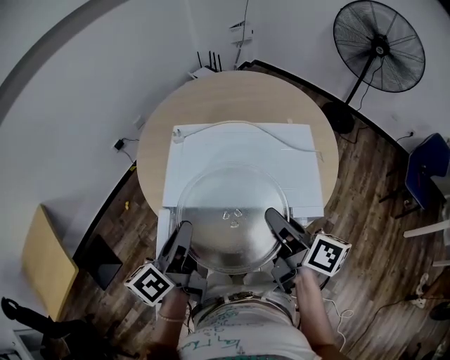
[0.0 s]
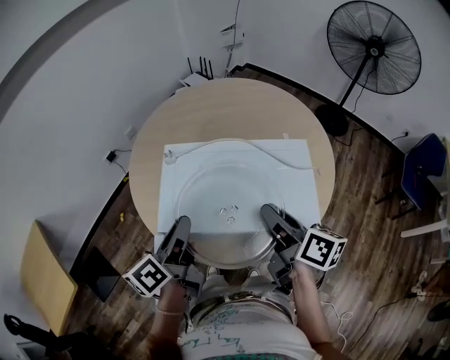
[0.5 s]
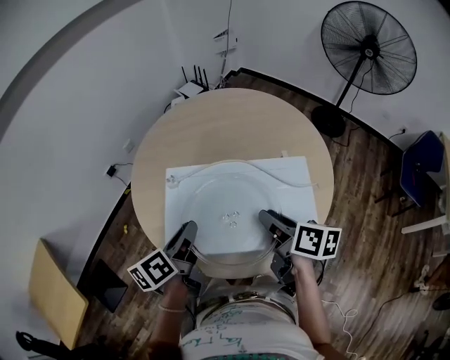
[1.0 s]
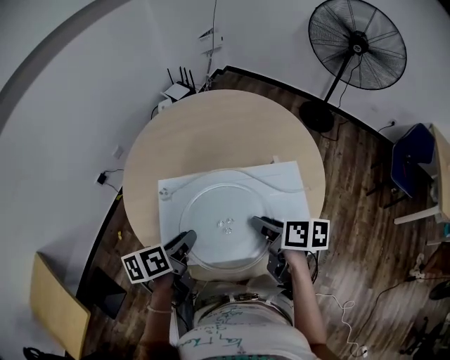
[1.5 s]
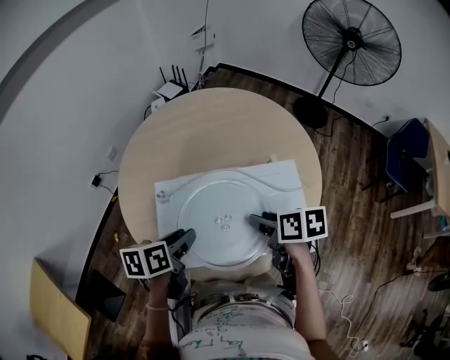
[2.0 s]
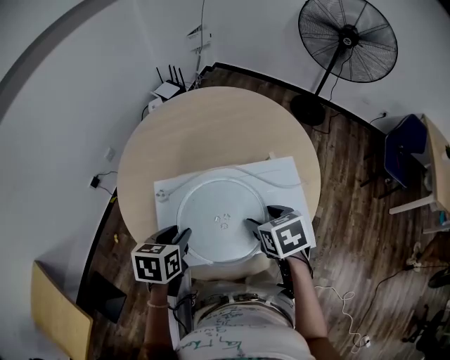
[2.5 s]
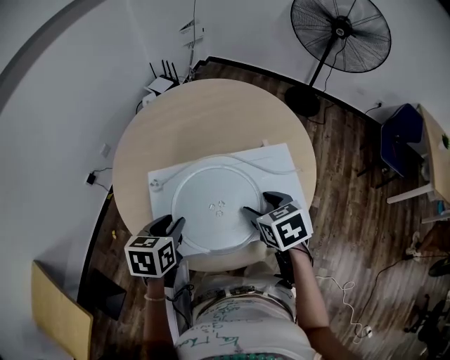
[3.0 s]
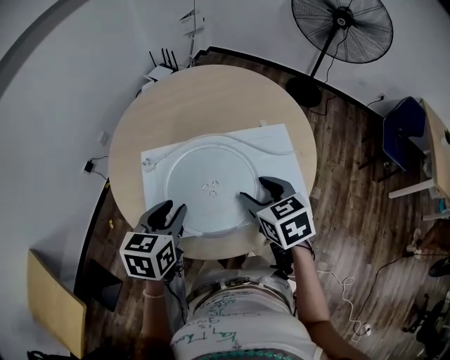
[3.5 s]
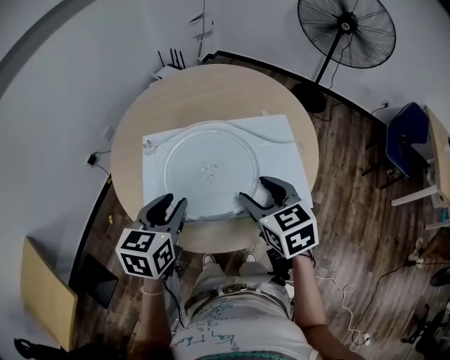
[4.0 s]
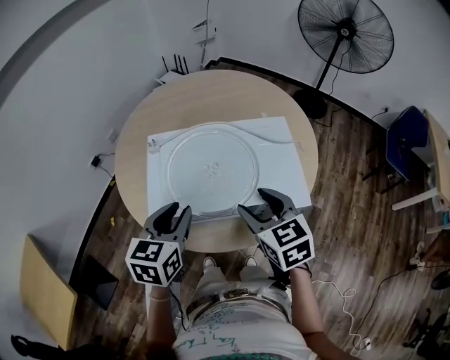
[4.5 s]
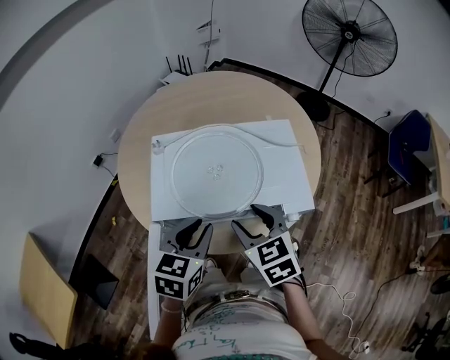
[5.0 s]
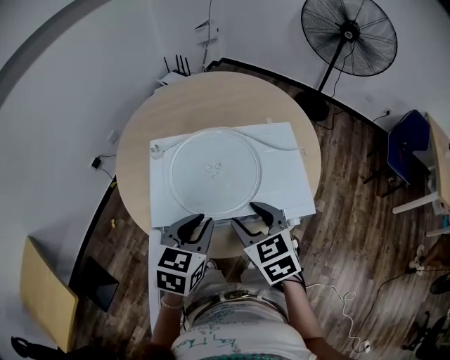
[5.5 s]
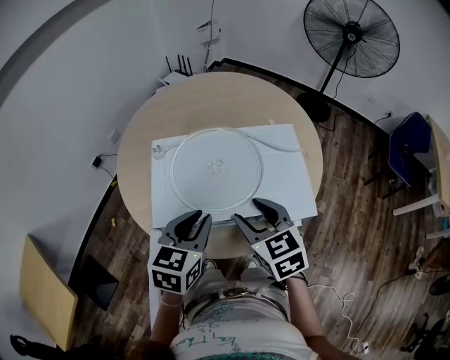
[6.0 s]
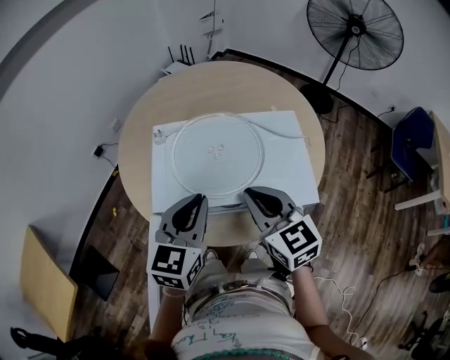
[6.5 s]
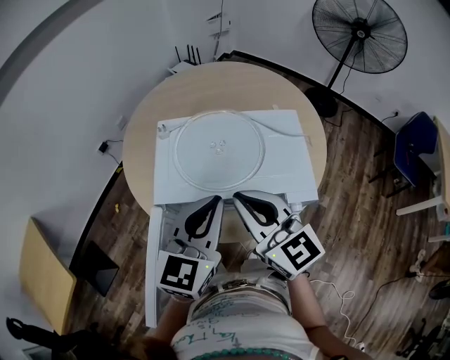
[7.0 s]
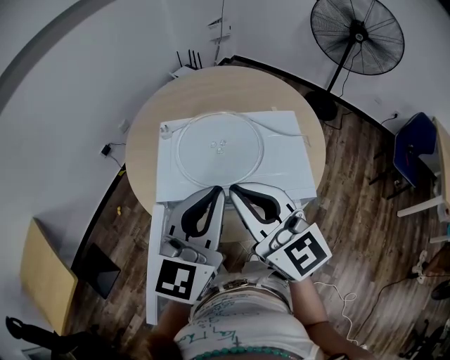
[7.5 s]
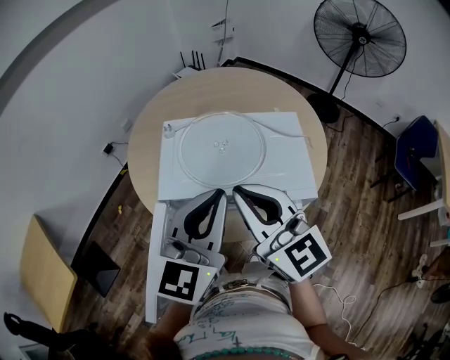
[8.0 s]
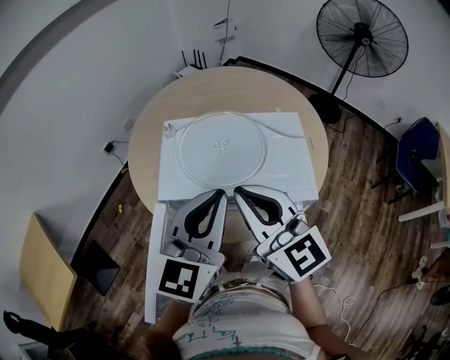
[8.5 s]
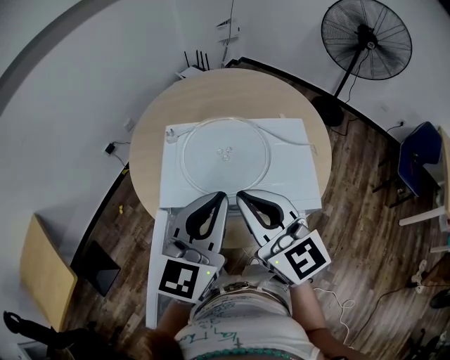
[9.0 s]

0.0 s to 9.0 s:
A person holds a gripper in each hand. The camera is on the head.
0.0 to 2.0 s: Both grippers move forward, approximately 15 cm. The left gripper tips its fingers downward by approximately 30 degrees. The right gripper tilts its fingers about 40 degrees downward, and opens its fingers.
2.0 to 4.5 s: The grippers both shift backward by about 10 cm. The right gripper rolls counterclockwise, seen from behind, by approximately 40 degrees. Meanwhile the left gripper rotates some 40 degrees.
4.5 to 7.0 s: The left gripper moves upward and to the right, approximately 10 cm, swivels some 20 degrees, and closes up. Meanwhile the right gripper moves upward and to the left, some 10 cm, rotates some 30 degrees, and closes its fingers.

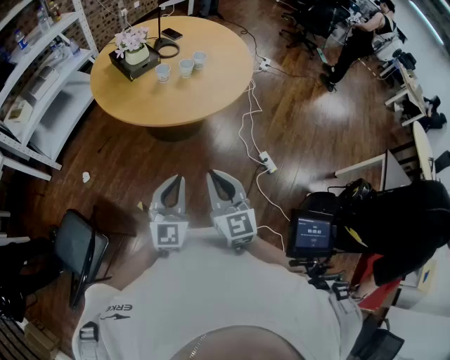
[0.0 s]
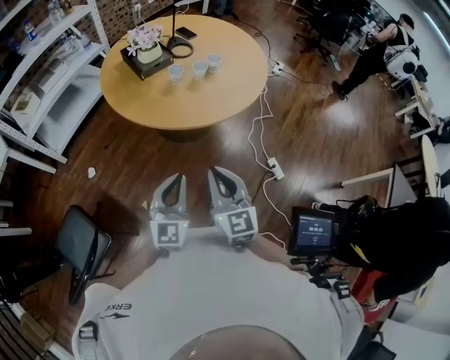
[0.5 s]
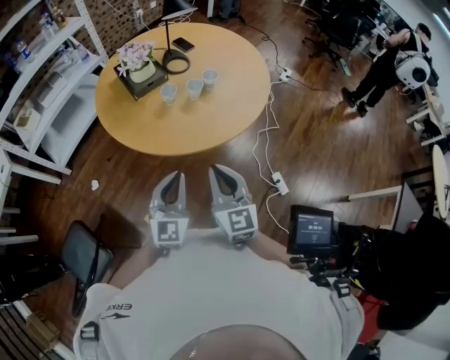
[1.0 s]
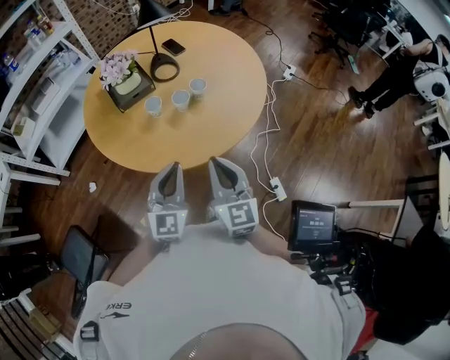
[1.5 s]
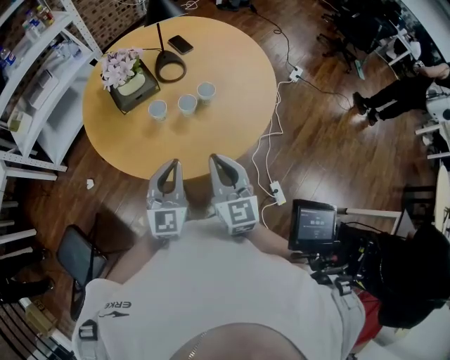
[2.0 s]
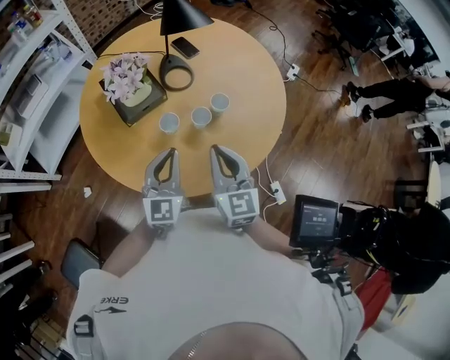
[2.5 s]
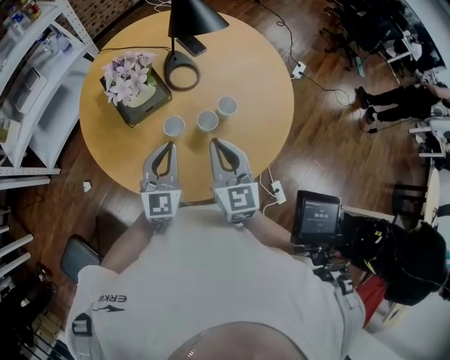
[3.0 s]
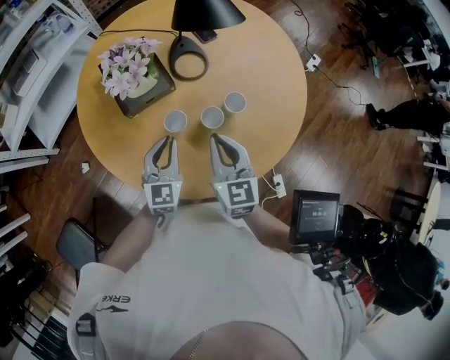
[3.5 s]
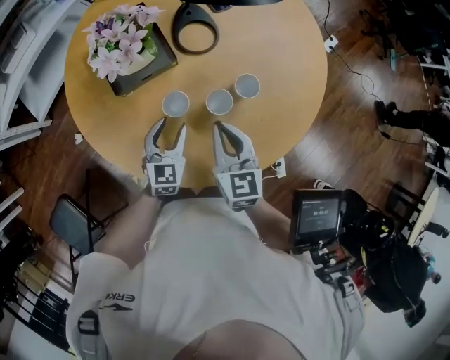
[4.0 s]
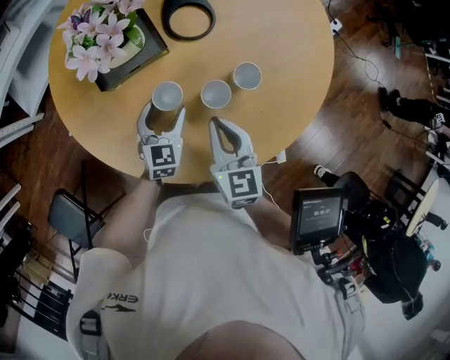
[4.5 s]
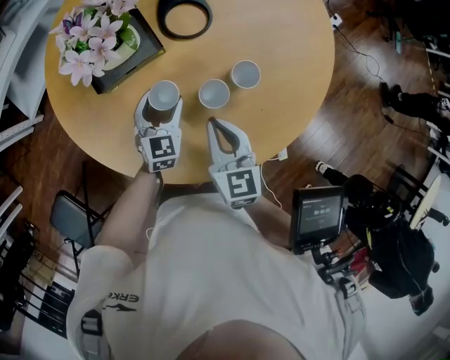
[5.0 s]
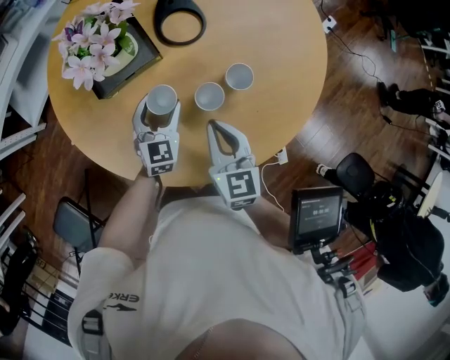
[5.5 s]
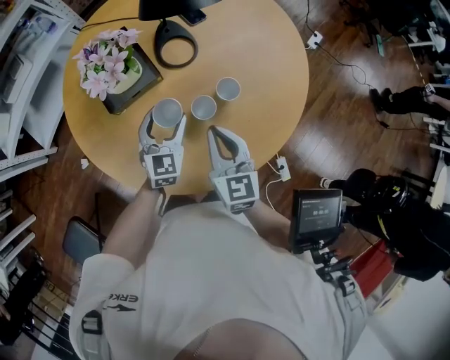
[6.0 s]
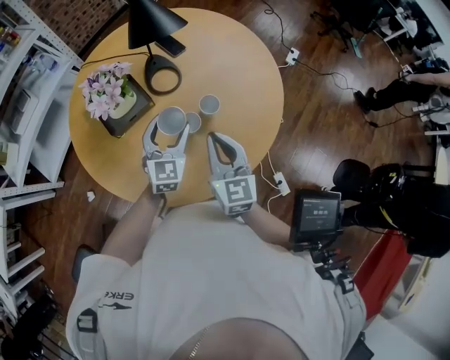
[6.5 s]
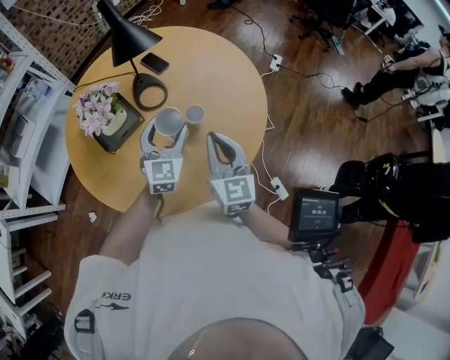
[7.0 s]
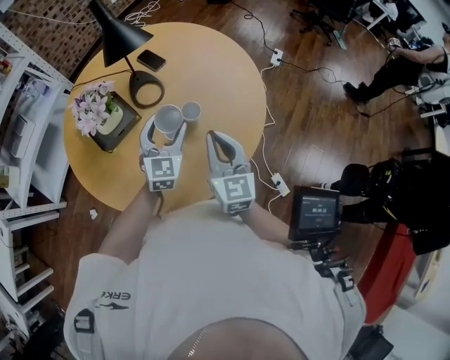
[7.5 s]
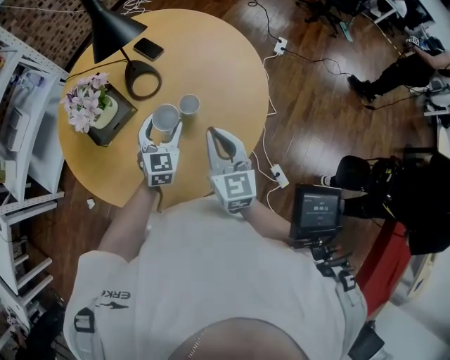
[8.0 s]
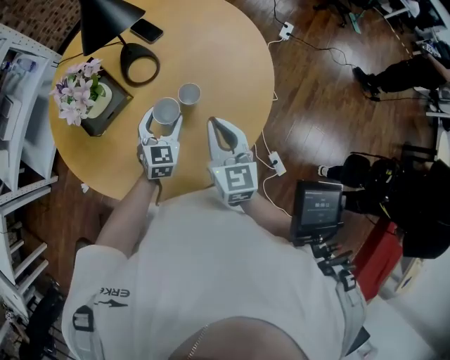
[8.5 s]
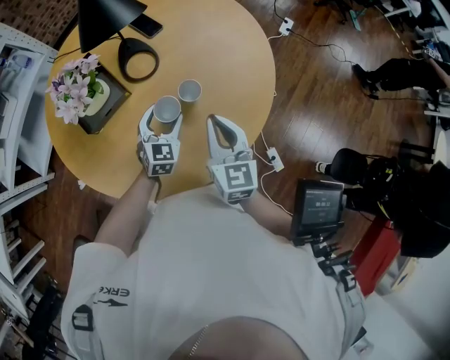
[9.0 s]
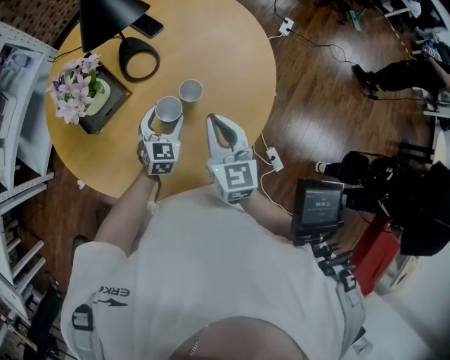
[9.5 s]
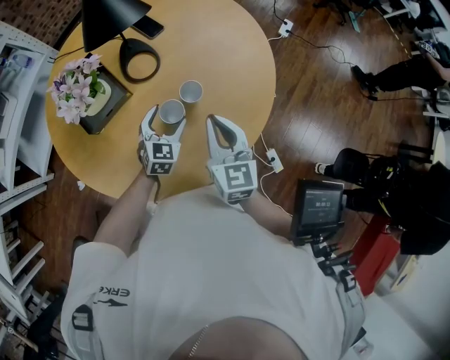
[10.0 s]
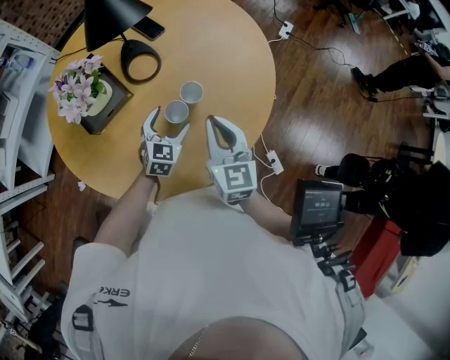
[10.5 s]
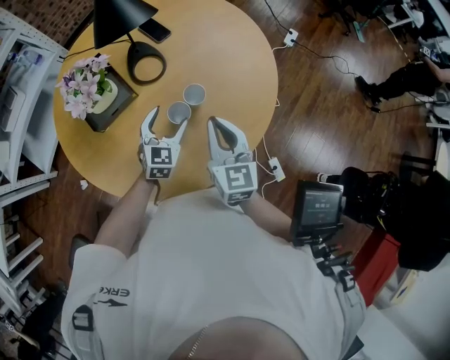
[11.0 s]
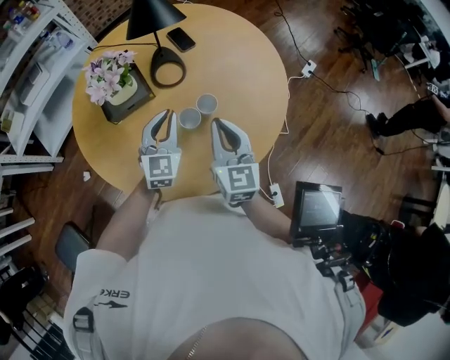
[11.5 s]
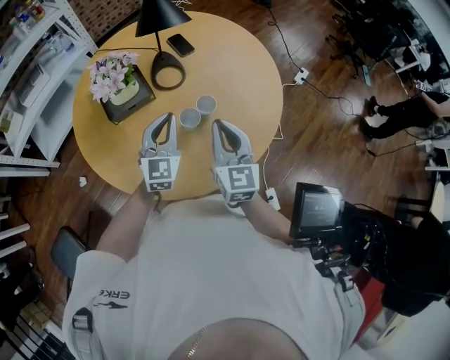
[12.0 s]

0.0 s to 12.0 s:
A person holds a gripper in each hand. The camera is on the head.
0.0 to 2.0 s: The two grippers go roughly 35 cm forward.
2.0 to 4.0 s: Both grippers travel together forward and downward, roughly 25 cm. The left gripper rotates some 20 degrees, and opens up.
4.0 to 6.0 s: The left gripper moves upward, some 5 cm.
6.0 to 8.0 s: The left gripper shifts about 10 cm to the right. Meanwhile the right gripper shifts about 10 cm to the right and upward.
8.0 to 10.0 s: The left gripper travels downward by roughly 10 cm.
10.0 to 12.0 s: The left gripper is displaced upward by some 15 cm, changes its angle by about 30 degrees, and closes its fingers. The right gripper heads upward, covering some 5 cm.

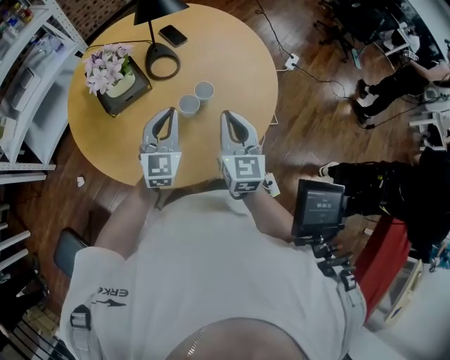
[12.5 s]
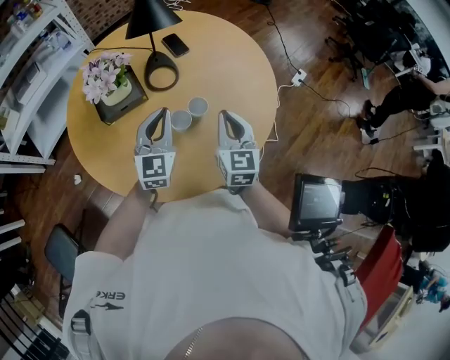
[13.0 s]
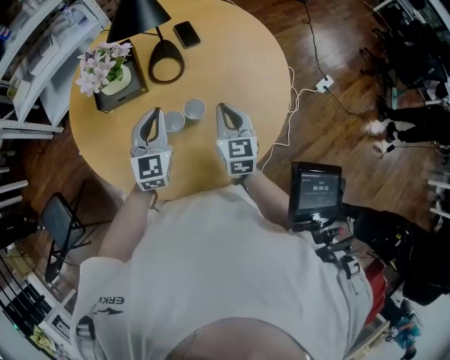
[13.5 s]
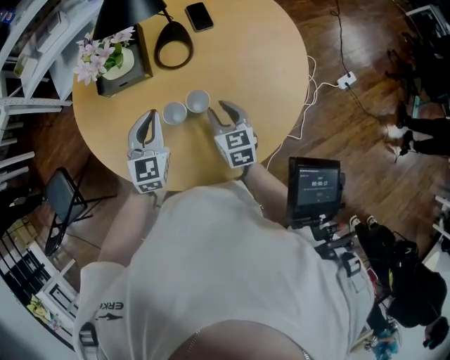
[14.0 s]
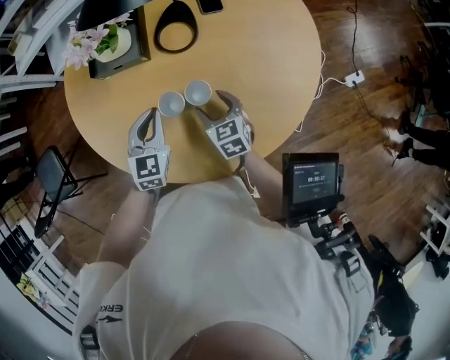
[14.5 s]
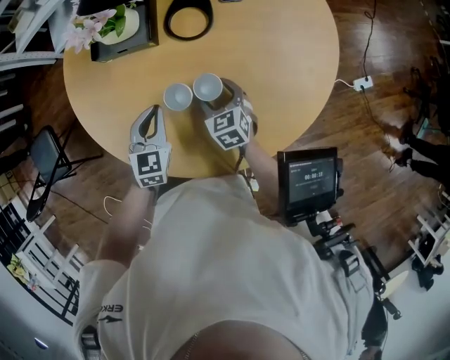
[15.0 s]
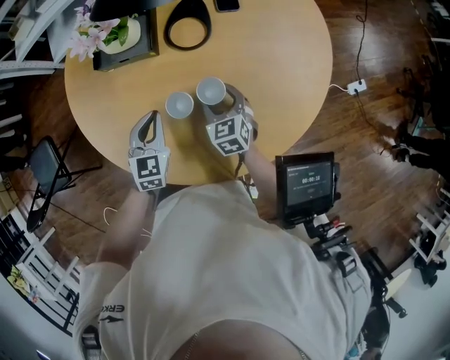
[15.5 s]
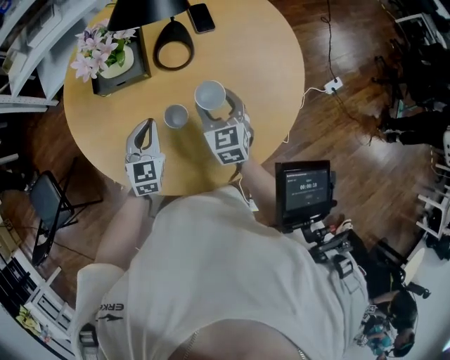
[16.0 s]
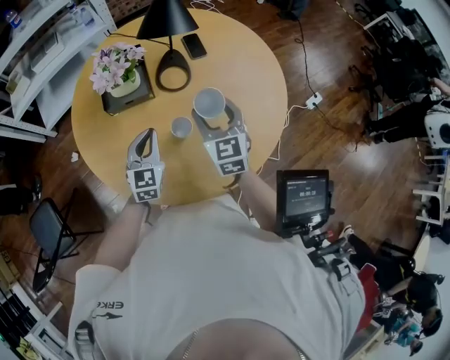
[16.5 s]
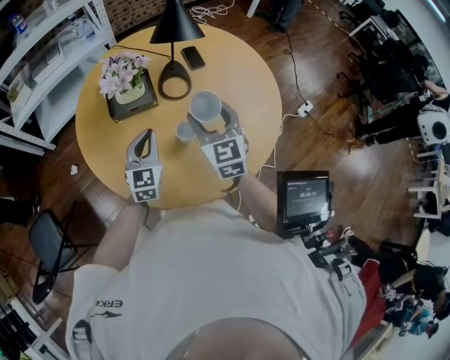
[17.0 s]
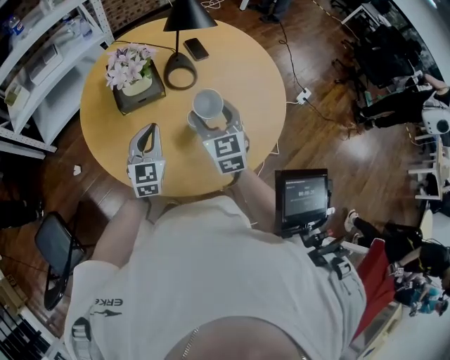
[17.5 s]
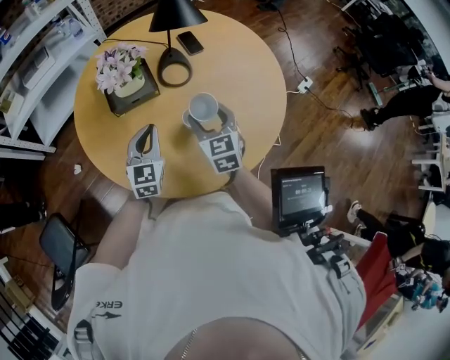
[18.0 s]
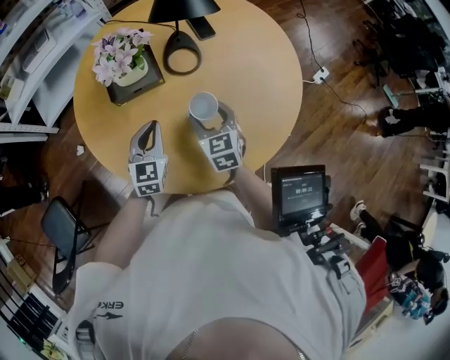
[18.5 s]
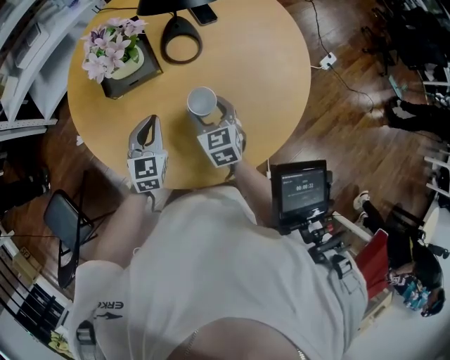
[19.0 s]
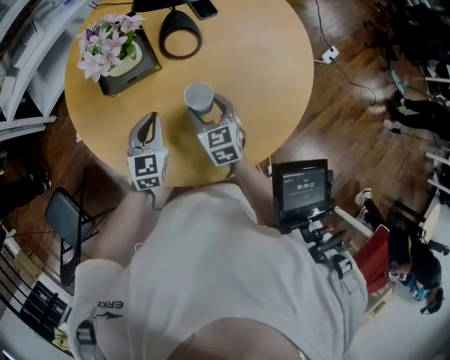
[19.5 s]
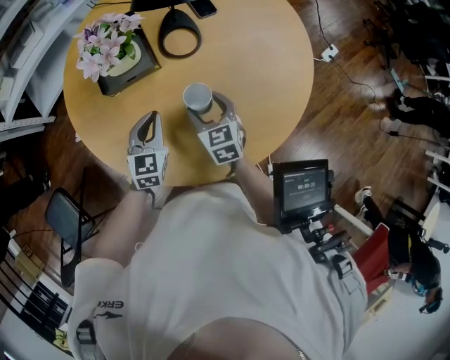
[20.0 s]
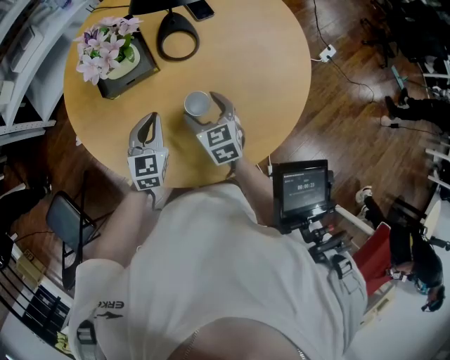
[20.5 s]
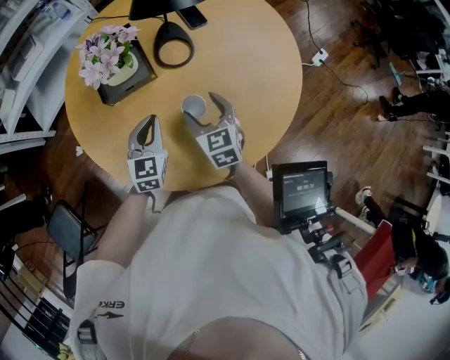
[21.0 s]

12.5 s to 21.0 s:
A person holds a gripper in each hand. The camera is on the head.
12.5 to 14.5 s: The left gripper goes roughly 10 cm downward, and rotates some 40 degrees; the right gripper heads downward, covering approximately 25 cm, changes its angle by approximately 50 degrees, and opens its fingers.
14.5 to 16.5 s: The right gripper heads upward, covering approximately 20 cm, and rotates some 30 degrees; the left gripper moves to the left, roughly 5 cm.
16.5 to 19.0 s: The right gripper travels downward and to the left by roughly 15 cm. Meanwhile the left gripper travels downward by about 5 cm.
19.0 to 21.0 s: There are only small adjustments of the grippers.
